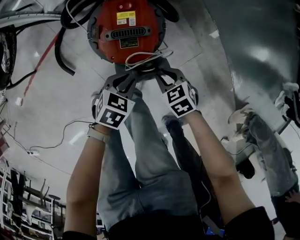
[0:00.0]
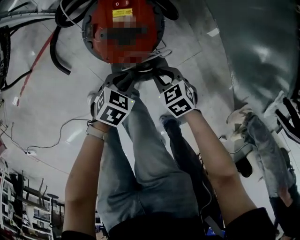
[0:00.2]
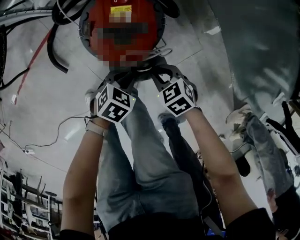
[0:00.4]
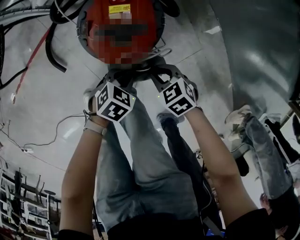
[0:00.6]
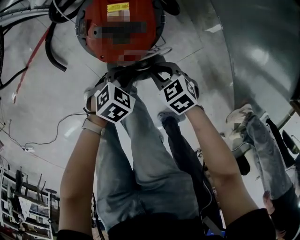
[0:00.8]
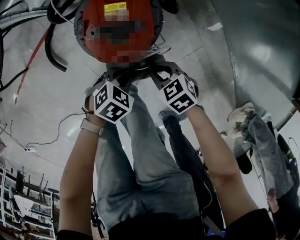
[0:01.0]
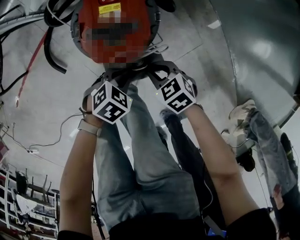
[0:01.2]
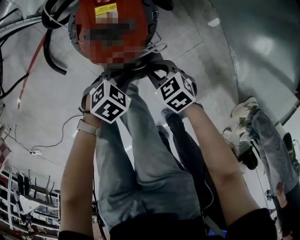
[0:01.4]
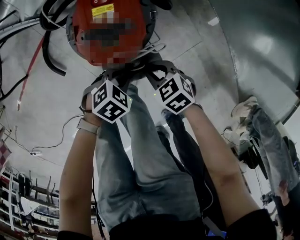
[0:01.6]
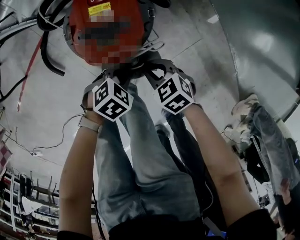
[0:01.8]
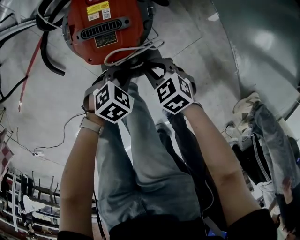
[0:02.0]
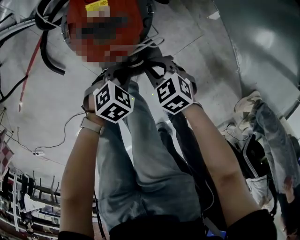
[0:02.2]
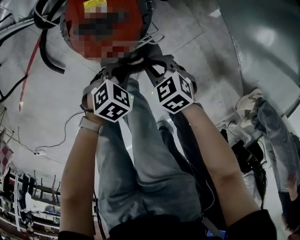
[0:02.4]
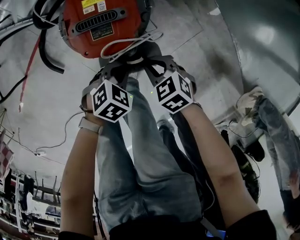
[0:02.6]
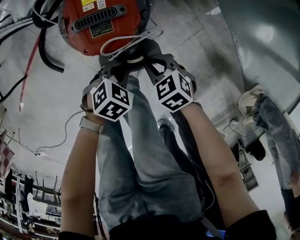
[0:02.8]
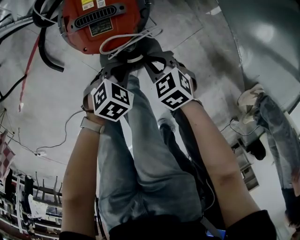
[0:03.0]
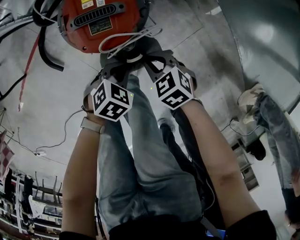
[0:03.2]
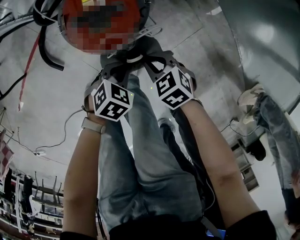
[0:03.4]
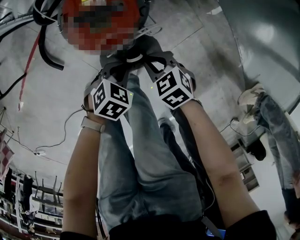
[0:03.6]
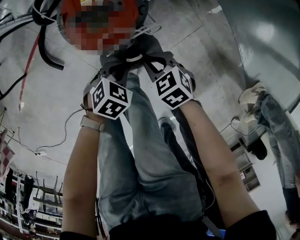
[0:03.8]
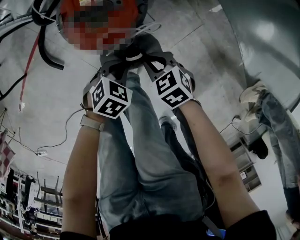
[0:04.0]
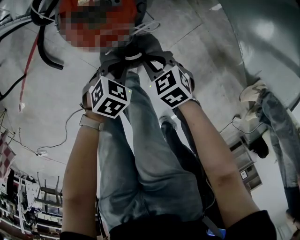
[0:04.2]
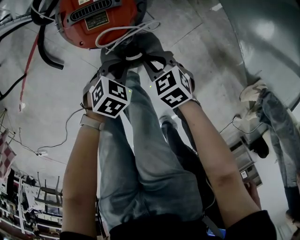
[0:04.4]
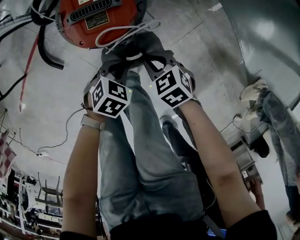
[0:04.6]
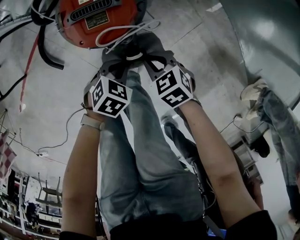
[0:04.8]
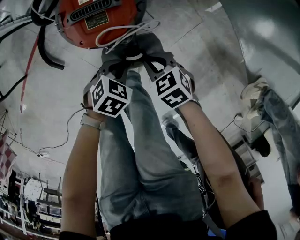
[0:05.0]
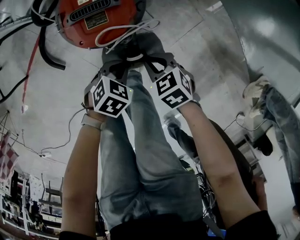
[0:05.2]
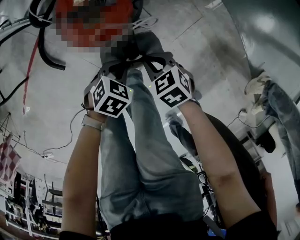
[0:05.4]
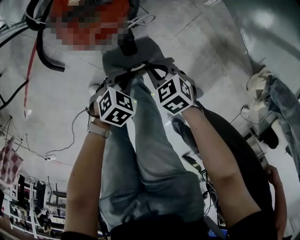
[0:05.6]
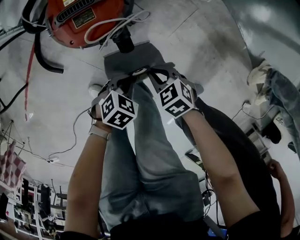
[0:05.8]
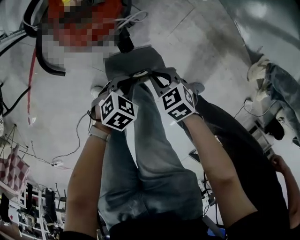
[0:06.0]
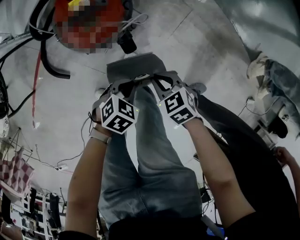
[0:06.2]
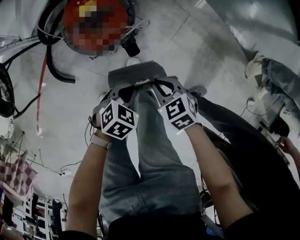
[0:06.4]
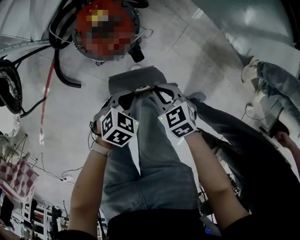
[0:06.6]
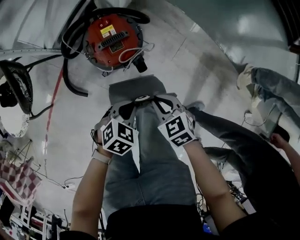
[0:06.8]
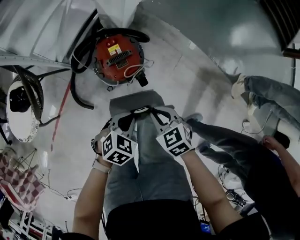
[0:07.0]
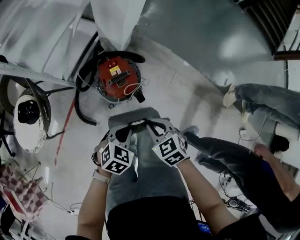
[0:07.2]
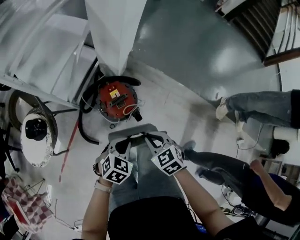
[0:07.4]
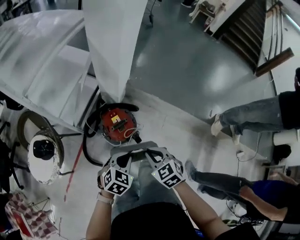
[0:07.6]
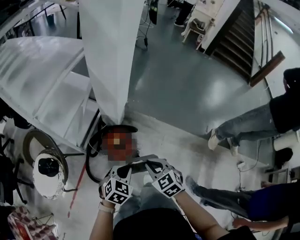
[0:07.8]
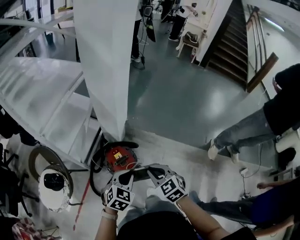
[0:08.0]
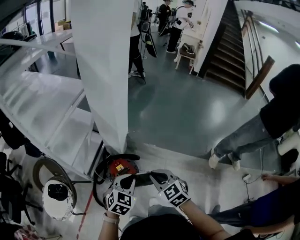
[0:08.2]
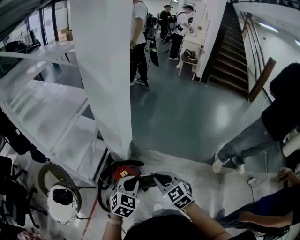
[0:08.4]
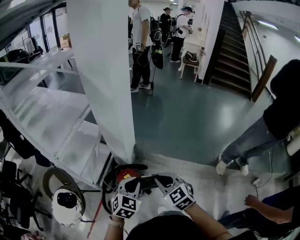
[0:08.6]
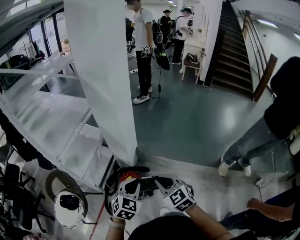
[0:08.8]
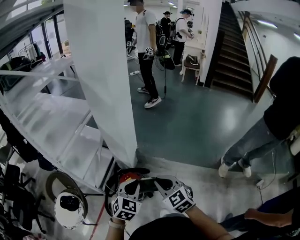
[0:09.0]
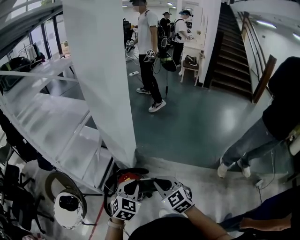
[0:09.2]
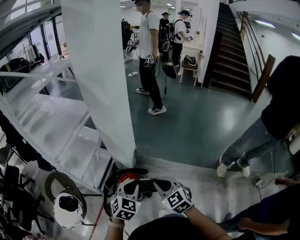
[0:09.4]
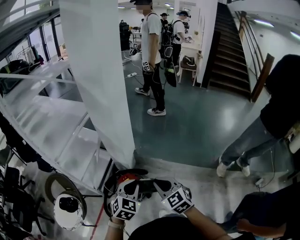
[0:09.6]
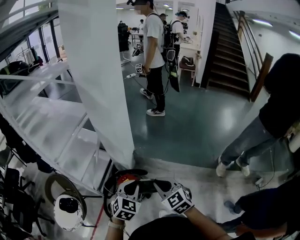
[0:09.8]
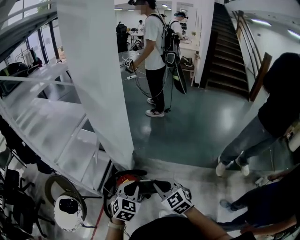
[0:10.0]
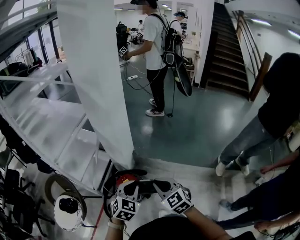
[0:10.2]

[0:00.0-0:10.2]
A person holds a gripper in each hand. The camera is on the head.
0:00.0 to 0:01.4: The left gripper is displaced downward by about 5 cm, and turns by about 20 degrees.
0:01.4 to 0:04.4: The grippers make only small movements.
0:04.4 to 0:05.8: The left gripper shifts by some 10 cm. Meanwhile the right gripper shifts by approximately 10 cm.
0:05.8 to 0:07.2: Both grippers move upward, about 35 cm. The left gripper swivels approximately 20 degrees, while the right gripper rotates roughly 30 degrees.
0:07.2 to 0:08.8: Both grippers travel together upward, about 40 cm. The right gripper rotates about 30 degrees. The left gripper swivels roughly 30 degrees.
0:08.8 to 0:10.2: The grippers stay close to where they were, moving slightly.

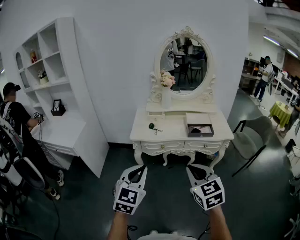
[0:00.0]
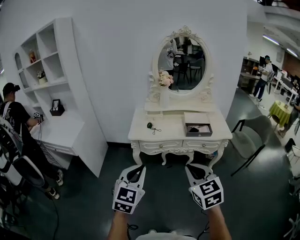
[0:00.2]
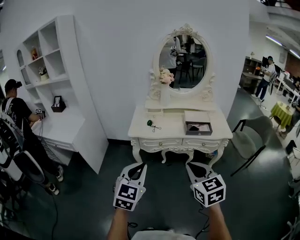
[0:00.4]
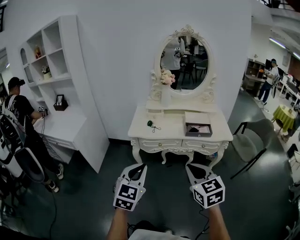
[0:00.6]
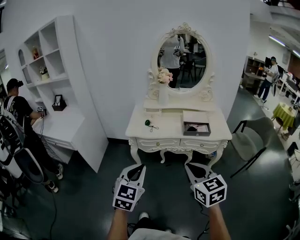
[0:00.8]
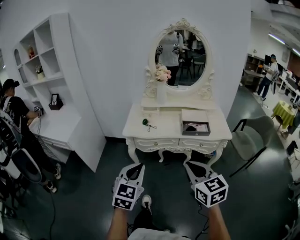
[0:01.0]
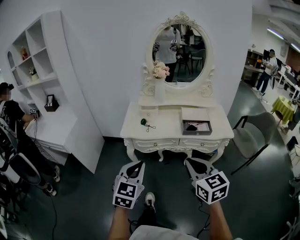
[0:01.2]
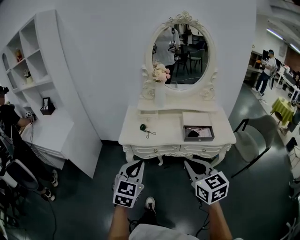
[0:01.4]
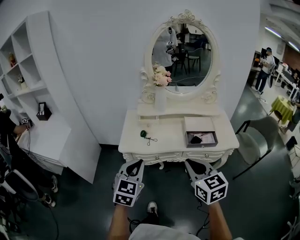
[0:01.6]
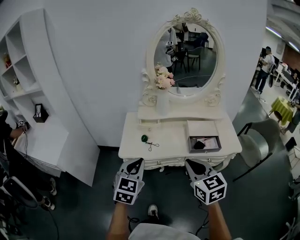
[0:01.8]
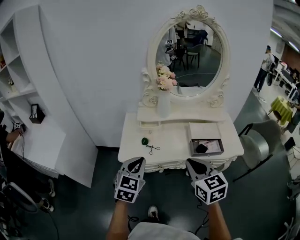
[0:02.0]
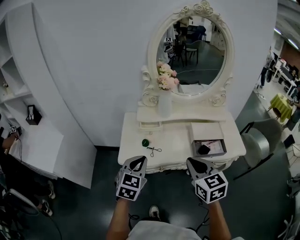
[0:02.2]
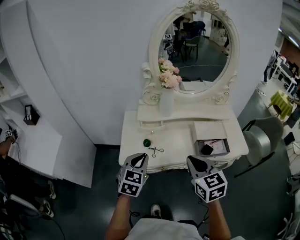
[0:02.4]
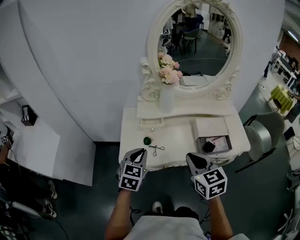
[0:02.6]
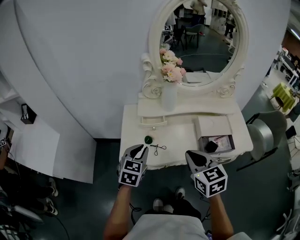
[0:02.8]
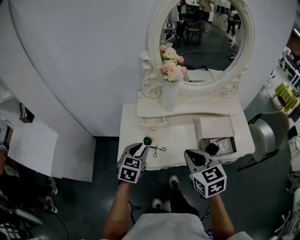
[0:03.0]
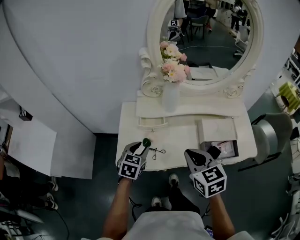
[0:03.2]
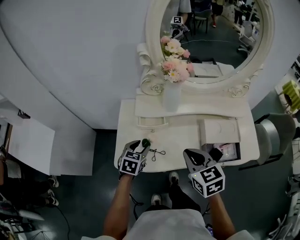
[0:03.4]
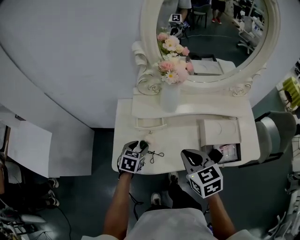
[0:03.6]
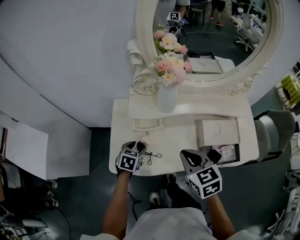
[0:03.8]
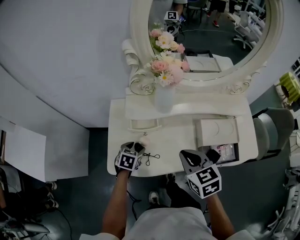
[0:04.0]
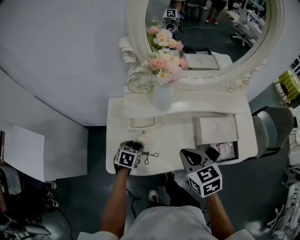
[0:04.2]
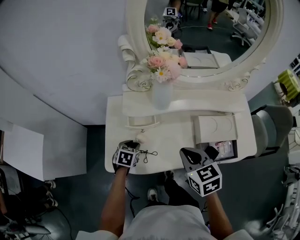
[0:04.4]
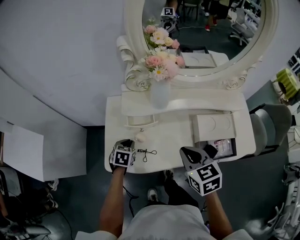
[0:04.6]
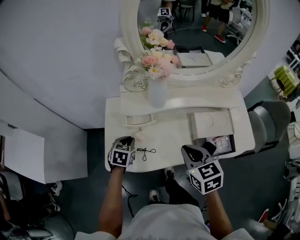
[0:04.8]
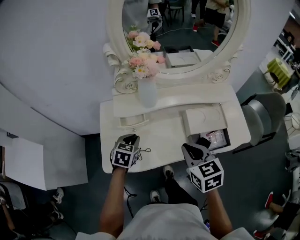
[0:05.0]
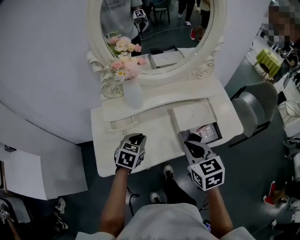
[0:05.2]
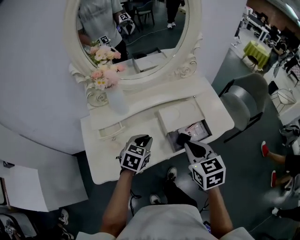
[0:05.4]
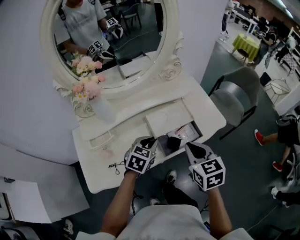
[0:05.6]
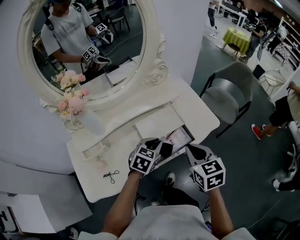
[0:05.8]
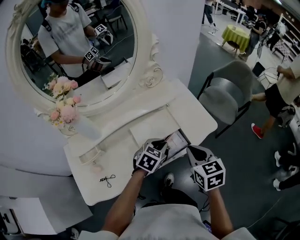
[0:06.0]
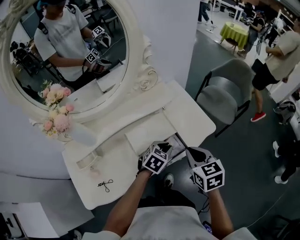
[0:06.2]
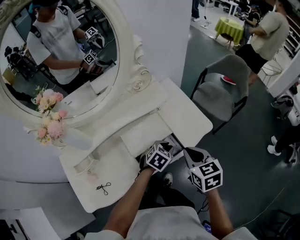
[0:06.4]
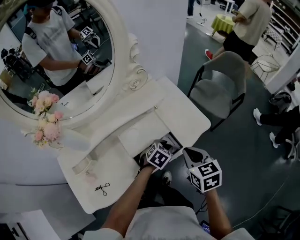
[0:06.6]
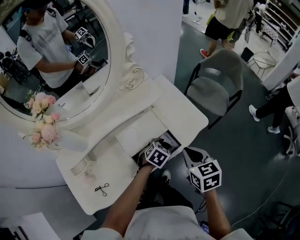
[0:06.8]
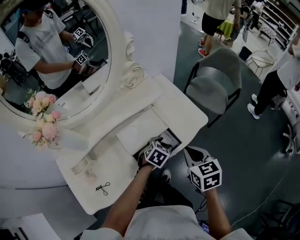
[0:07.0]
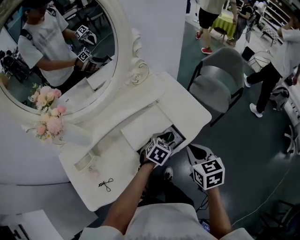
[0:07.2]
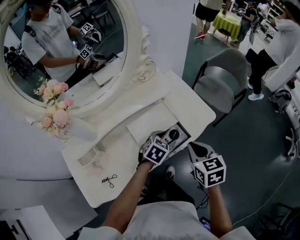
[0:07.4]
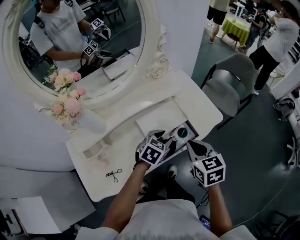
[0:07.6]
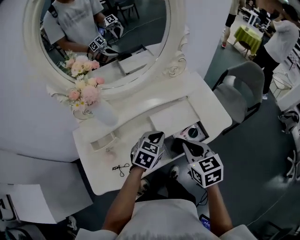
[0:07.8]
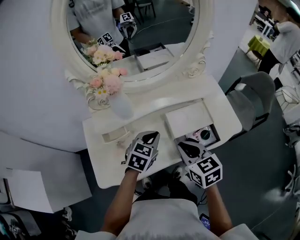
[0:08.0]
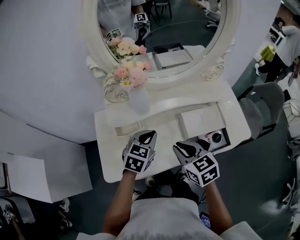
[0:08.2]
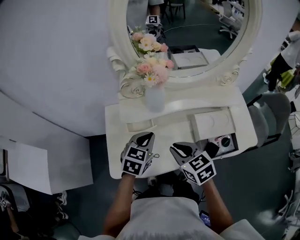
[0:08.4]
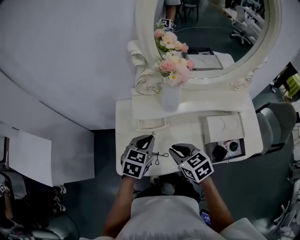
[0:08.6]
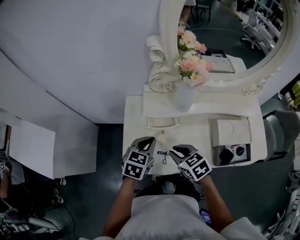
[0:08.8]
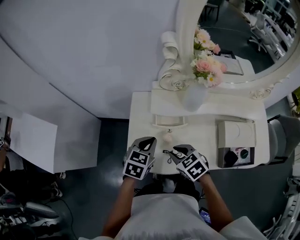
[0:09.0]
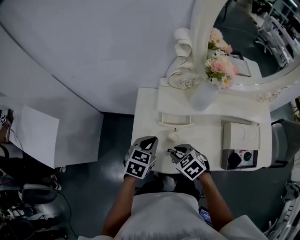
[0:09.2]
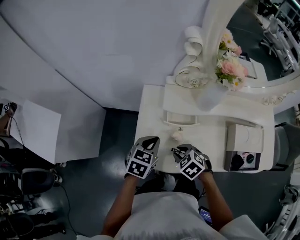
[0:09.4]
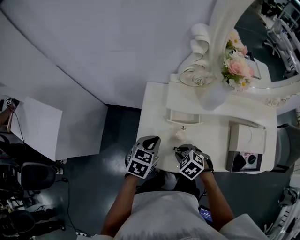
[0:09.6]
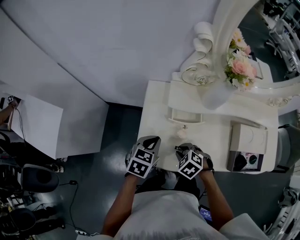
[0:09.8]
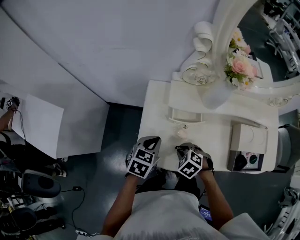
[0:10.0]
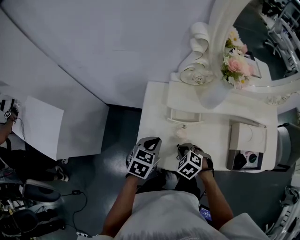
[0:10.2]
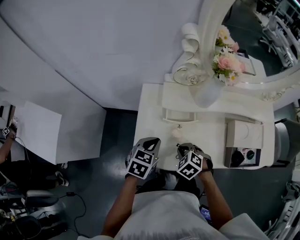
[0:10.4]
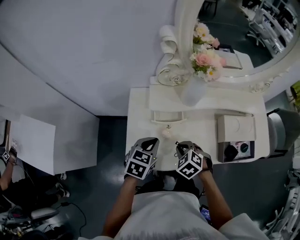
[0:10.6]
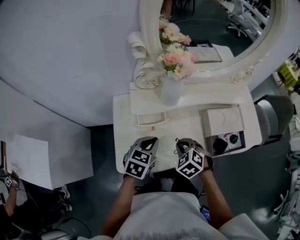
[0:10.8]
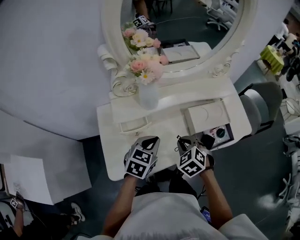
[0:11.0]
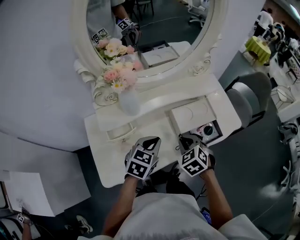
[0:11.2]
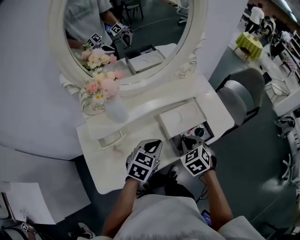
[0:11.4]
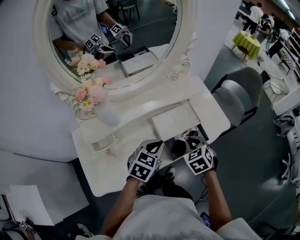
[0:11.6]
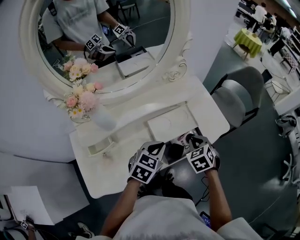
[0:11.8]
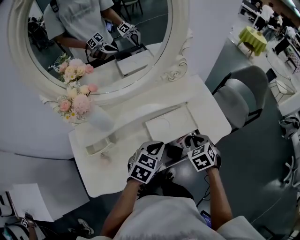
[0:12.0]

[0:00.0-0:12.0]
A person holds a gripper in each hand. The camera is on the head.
0:00.0 to 0:01.6: The two grippers go some 20 cm forward.
0:01.6 to 0:03.0: The left gripper goes approximately 30 cm forward and downward, and opens up. Meanwhile the right gripper is displaced forward by roughly 25 cm.
0:03.0 to 0:04.4: The left gripper goes about 20 cm downward and forward, and swivels some 30 degrees, while the right gripper shifts roughly 10 cm forward and downward.
0:04.4 to 0:06.0: The right gripper shifts by roughly 30 cm, and rotates about 30 degrees, while the left gripper moves approximately 50 cm, swivels roughly 50 degrees, and closes up.
0:06.0 to 0:07.6: The left gripper travels to the right and back again, roughly 5 cm each way, and opens its fingers.
0:07.6 to 0:09.0: The two grippers travel together, some 40 cm. The right gripper changes its angle by about 60 degrees; the left gripper rotates about 50 degrees, and closes its fingers.
0:09.0 to 0:10.4: The right gripper moves downward, some 5 cm, and rotates some 20 degrees.
0:10.4 to 0:12.0: The pair of grippers is taken some 40 cm. The right gripper rotates around the line of its fingers by about 40 degrees, clockwise from behind, while the left gripper rotates roughly 40 degrees.

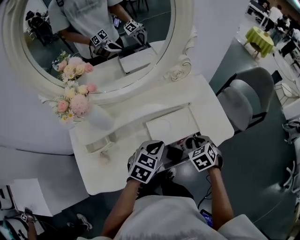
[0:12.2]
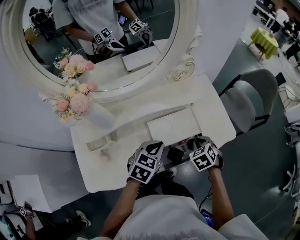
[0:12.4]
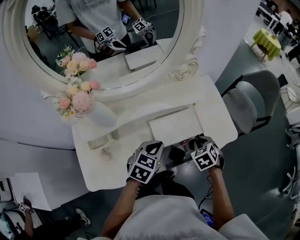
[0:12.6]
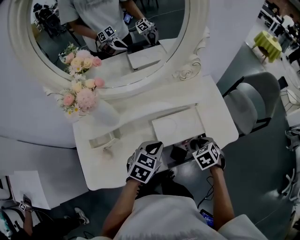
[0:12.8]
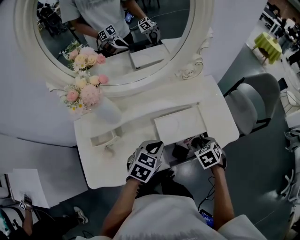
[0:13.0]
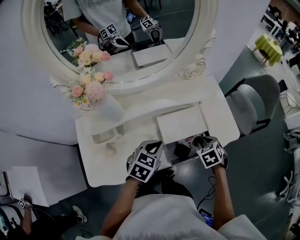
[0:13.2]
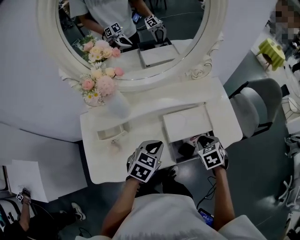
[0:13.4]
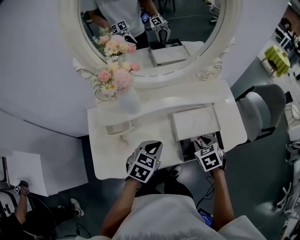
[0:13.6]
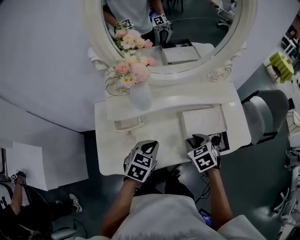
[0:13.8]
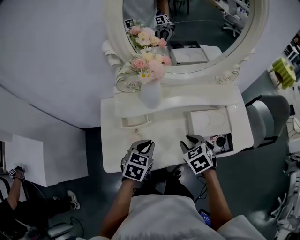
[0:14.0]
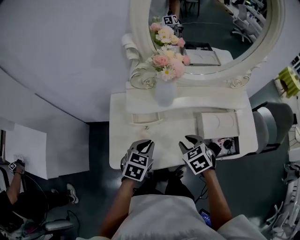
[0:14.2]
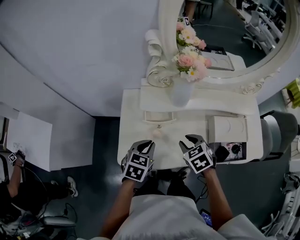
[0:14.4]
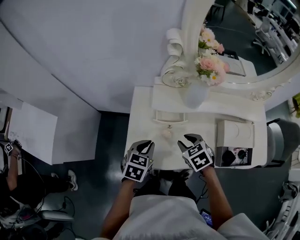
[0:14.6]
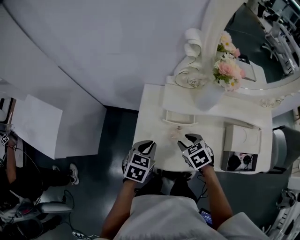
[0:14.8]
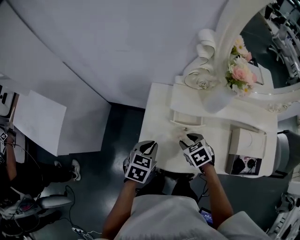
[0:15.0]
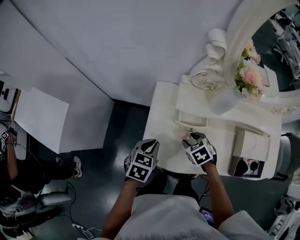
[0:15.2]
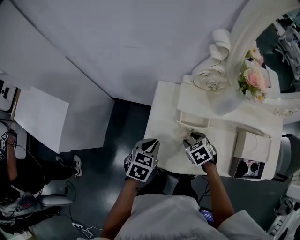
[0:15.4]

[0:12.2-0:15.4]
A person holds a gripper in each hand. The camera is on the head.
0:12.2 to 0:13.8: The grippers both shift to the left and backward by approximately 20 cm.
0:13.8 to 0:15.4: The left gripper ends up approximately 30 cm from where it was, and swivels roughly 30 degrees, while the right gripper ends up some 35 cm from where it was, and swivels about 30 degrees.
